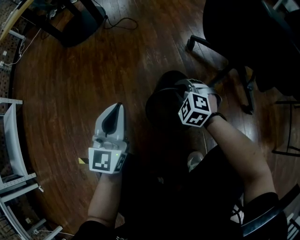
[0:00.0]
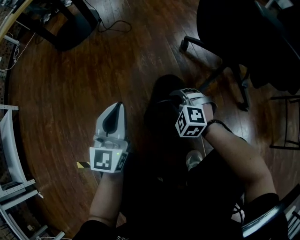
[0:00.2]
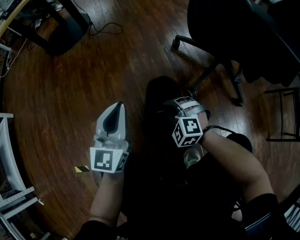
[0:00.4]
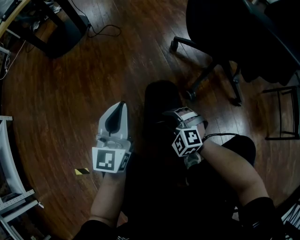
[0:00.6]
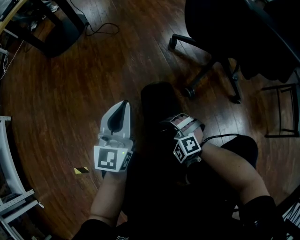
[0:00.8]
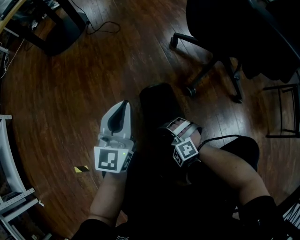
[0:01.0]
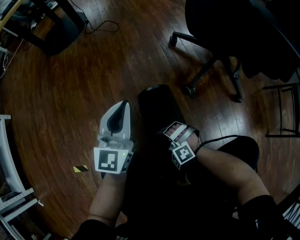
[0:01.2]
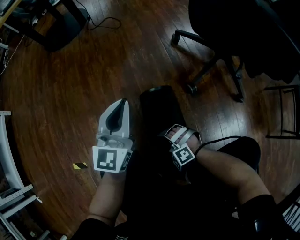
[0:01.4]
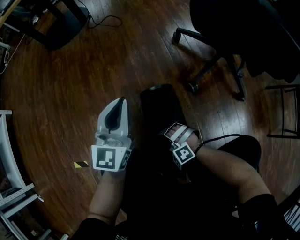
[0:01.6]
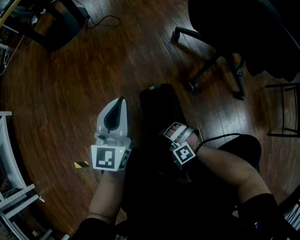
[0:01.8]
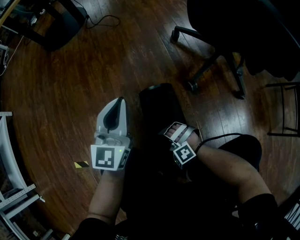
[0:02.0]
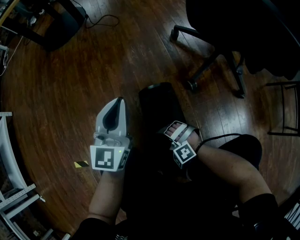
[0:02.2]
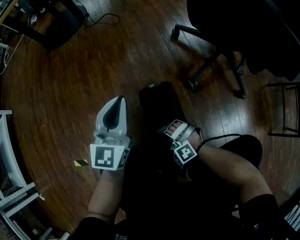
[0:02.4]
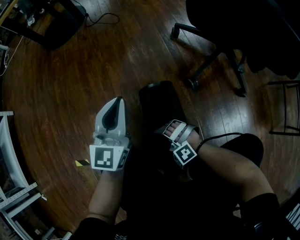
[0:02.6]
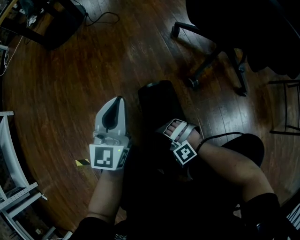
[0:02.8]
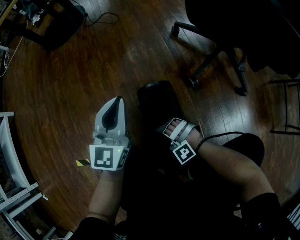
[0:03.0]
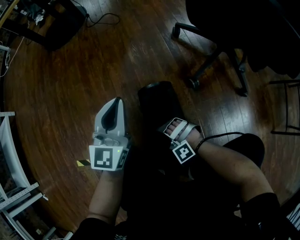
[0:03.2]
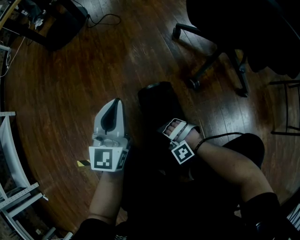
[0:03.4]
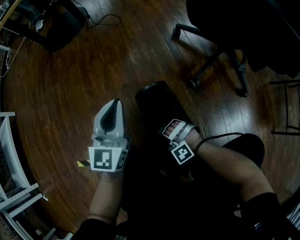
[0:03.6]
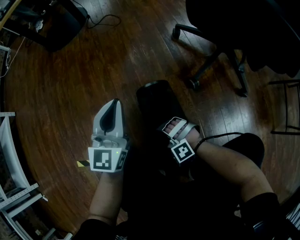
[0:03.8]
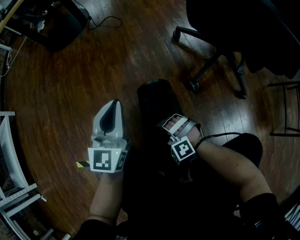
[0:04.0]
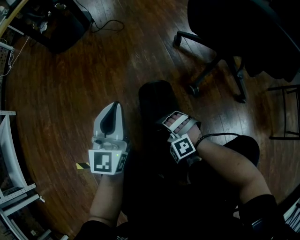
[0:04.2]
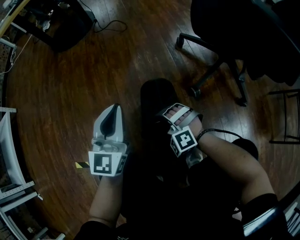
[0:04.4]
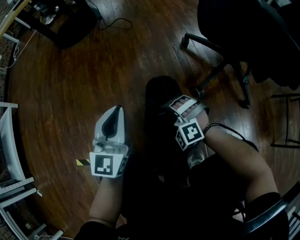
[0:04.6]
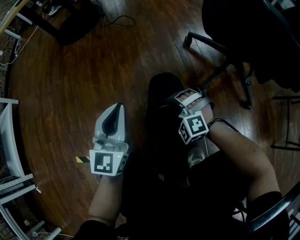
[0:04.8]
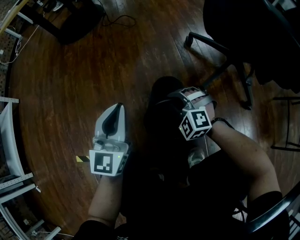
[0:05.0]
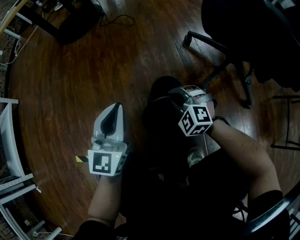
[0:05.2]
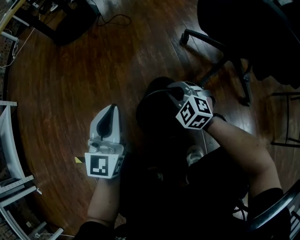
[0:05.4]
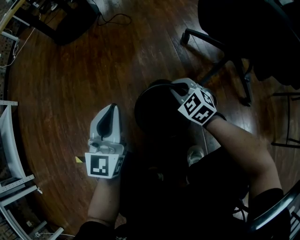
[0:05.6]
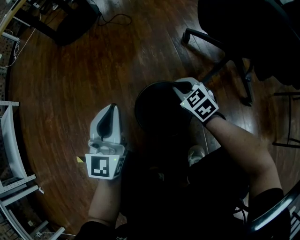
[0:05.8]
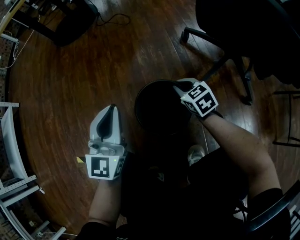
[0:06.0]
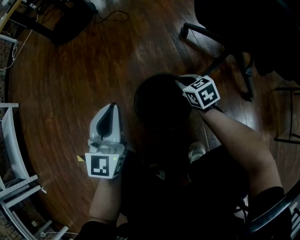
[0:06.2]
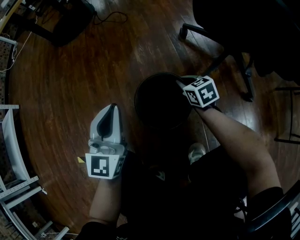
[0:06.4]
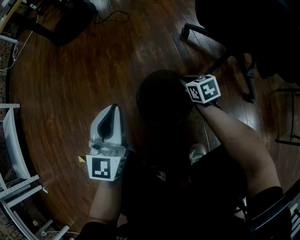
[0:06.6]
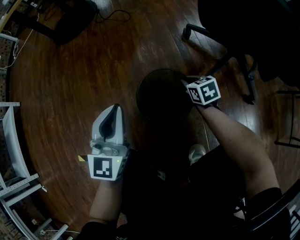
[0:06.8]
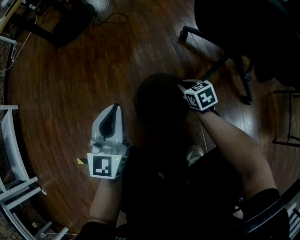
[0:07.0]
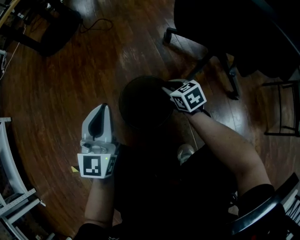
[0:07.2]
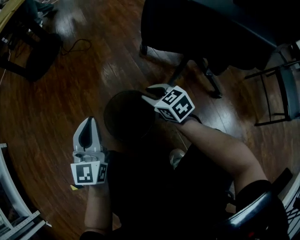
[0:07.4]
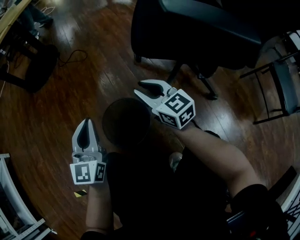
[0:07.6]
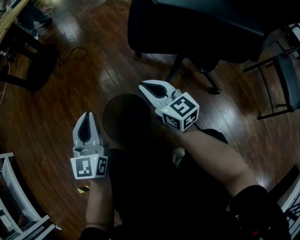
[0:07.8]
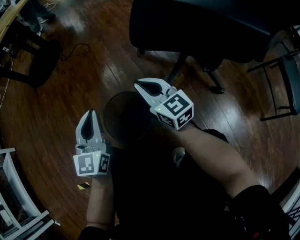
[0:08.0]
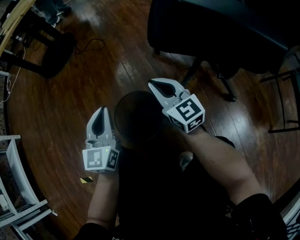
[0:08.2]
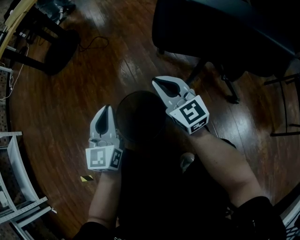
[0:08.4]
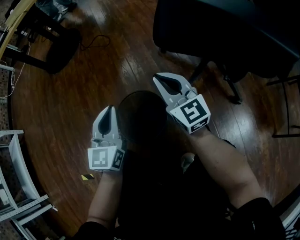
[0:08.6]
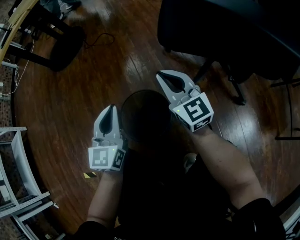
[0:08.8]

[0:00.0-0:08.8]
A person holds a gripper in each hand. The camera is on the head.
0:00.0 to 0:01.4: The right gripper shifts about 30 cm backward, downward and to the left, turns by some 30 degrees, and opens up.
0:01.4 to 0:03.0: The right gripper opens.
0:03.0 to 0:04.4: The right gripper is displaced forward and upward by about 10 cm, and closes.
0:04.4 to 0:05.8: The right gripper travels forward and to the right by about 15 cm, and twists about 60 degrees clockwise, seen from behind.
0:05.8 to 0:07.4: The left gripper moves about 5 cm. The right gripper swivels about 20 degrees, and opens.
0:07.4 to 0:08.8: The left gripper changes place by some 5 cm. Meanwhile the right gripper goes roughly 10 cm upward, tips its fingers upward by about 30 degrees, and closes its fingers.

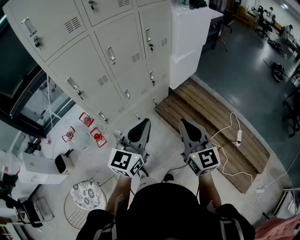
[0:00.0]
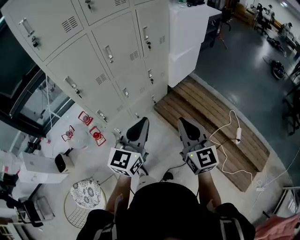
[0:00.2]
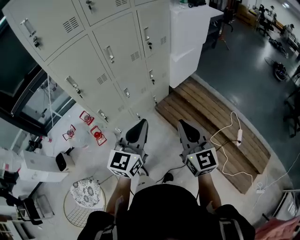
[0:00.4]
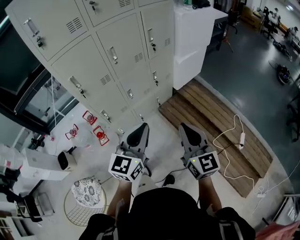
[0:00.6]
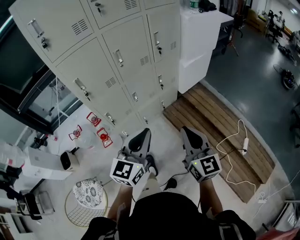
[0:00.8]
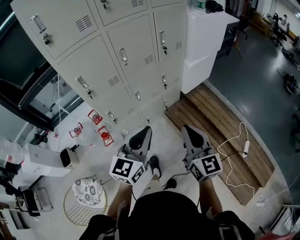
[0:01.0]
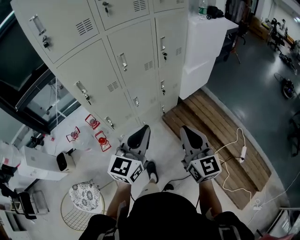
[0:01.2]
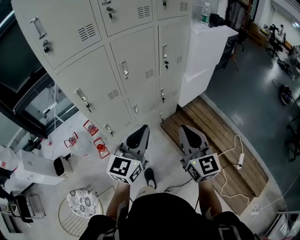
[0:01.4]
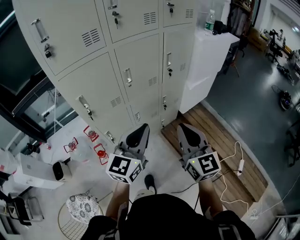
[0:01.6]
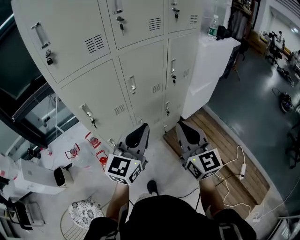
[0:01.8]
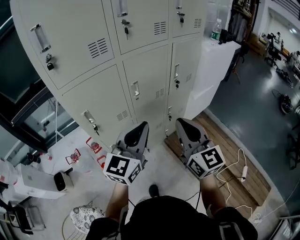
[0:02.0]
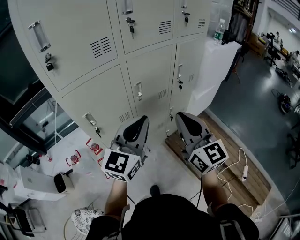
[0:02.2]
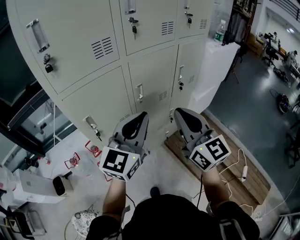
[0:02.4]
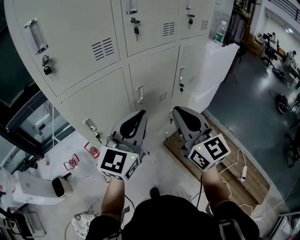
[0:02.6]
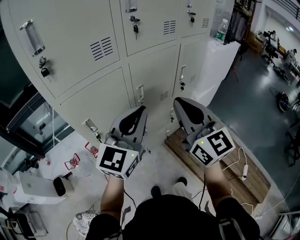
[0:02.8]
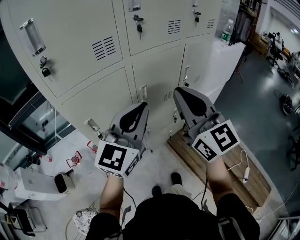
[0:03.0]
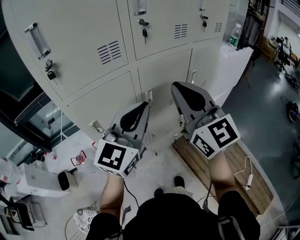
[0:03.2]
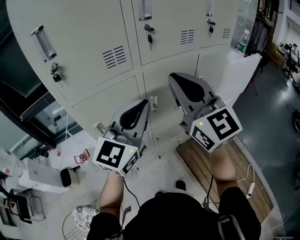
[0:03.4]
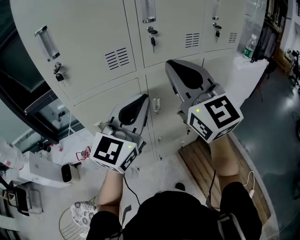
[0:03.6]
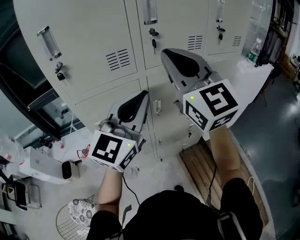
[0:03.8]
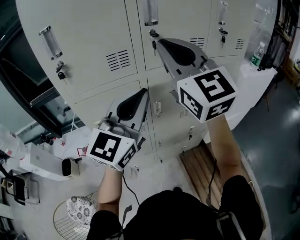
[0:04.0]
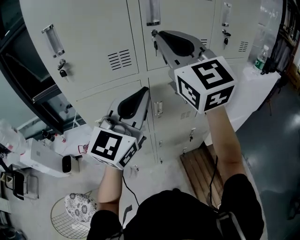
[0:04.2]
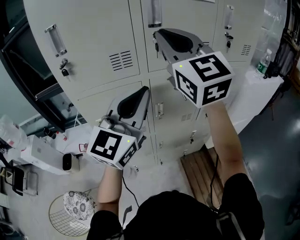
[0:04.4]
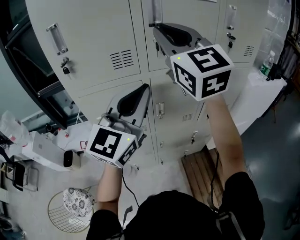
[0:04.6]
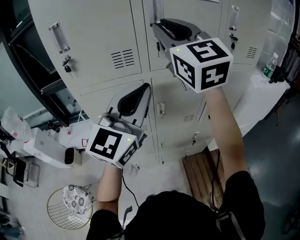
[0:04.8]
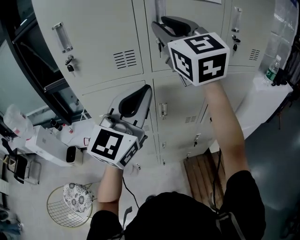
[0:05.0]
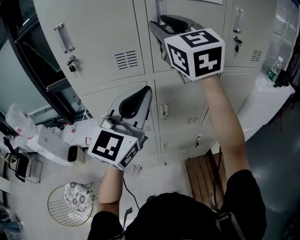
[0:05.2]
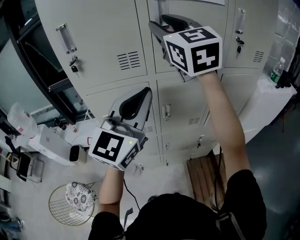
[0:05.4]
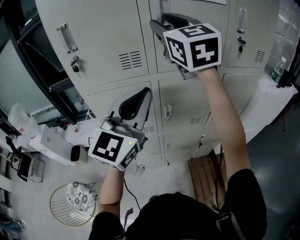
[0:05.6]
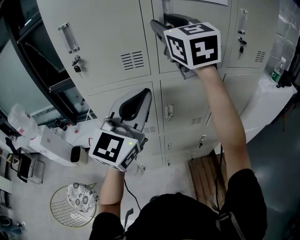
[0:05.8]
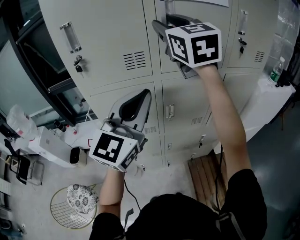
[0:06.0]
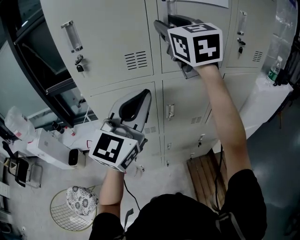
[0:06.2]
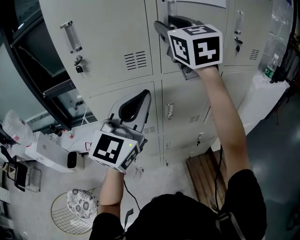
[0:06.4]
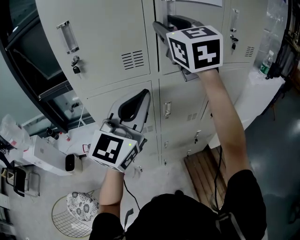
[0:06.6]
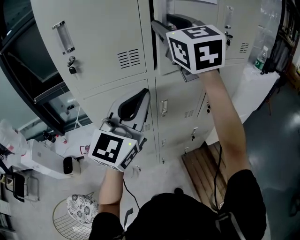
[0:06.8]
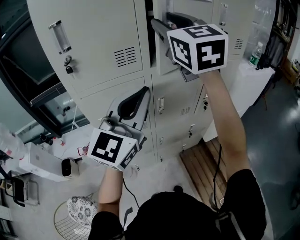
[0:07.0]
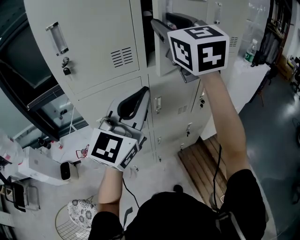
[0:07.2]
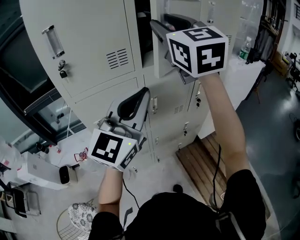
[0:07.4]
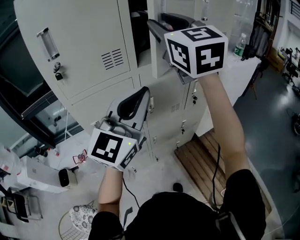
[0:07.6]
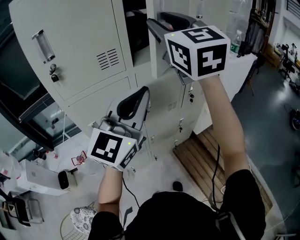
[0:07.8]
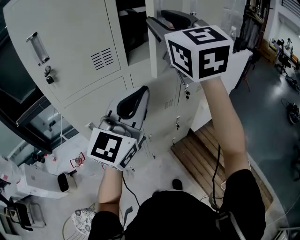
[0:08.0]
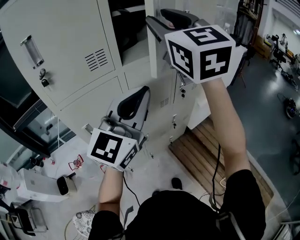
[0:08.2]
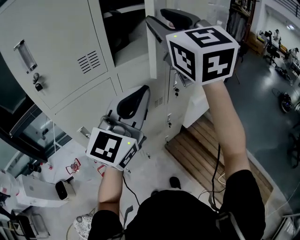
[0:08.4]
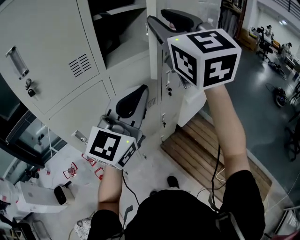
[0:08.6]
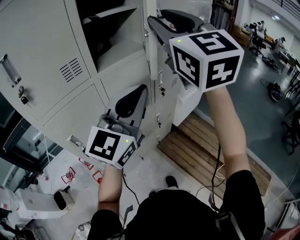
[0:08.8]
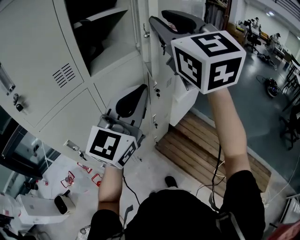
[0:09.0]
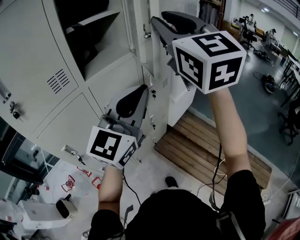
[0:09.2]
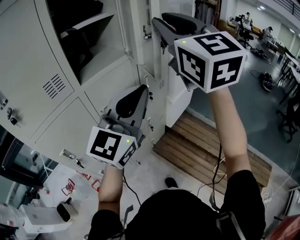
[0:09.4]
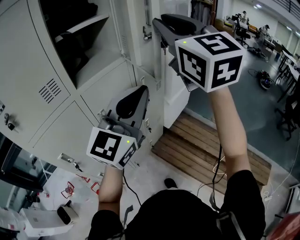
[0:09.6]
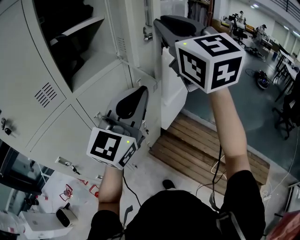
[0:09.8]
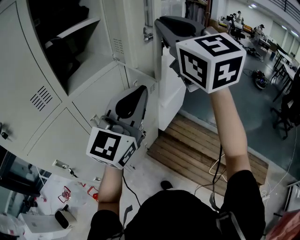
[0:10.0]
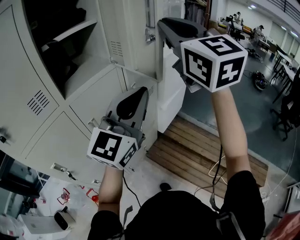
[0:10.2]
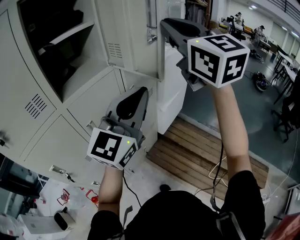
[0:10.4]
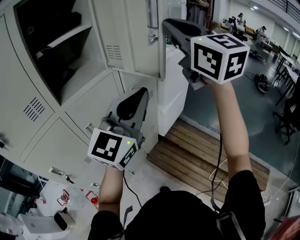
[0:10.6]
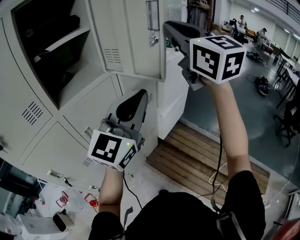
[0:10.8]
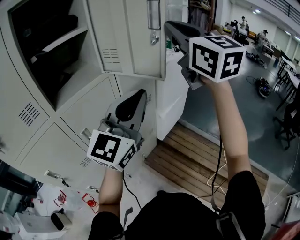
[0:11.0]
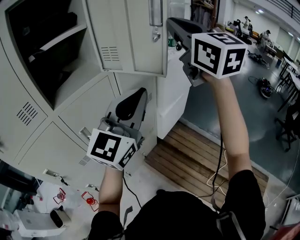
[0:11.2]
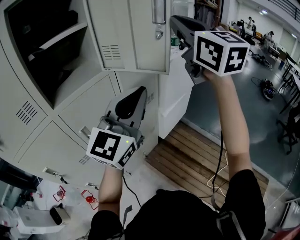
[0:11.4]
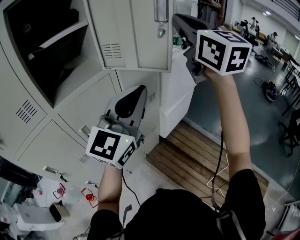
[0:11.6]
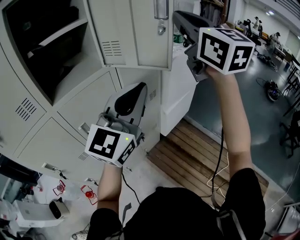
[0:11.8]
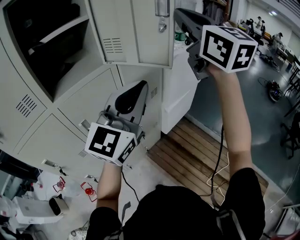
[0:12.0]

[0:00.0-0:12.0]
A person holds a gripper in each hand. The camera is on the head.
0:00.0 to 0:01.6: The left gripper is displaced forward and to the left by about 15 cm, while the right gripper shifts approximately 15 cm forward, to the left and upward.
0:01.6 to 0:03.0: Both grippers travel together forward, upward and to the left, roughly 25 cm.
0:03.0 to 0:04.4: The right gripper travels upward and forward by approximately 20 cm; the left gripper is displaced upward by approximately 10 cm.
0:04.4 to 0:06.0: The right gripper travels forward by about 5 cm, and opens up.
0:06.0 to 0:07.6: The right gripper shifts roughly 10 cm backward and to the right.
0:07.6 to 0:09.0: Both grippers travel together to the right, about 15 cm.
0:09.0 to 0:10.4: Both grippers travel together to the right and forward, about 10 cm. The right gripper closes.
0:10.4 to 0:12.0: The left gripper travels forward by approximately 5 cm; the right gripper moves forward and to the right, approximately 10 cm.

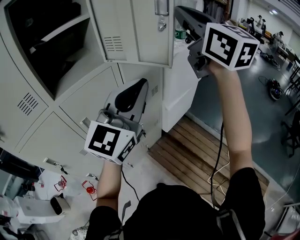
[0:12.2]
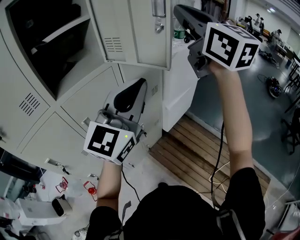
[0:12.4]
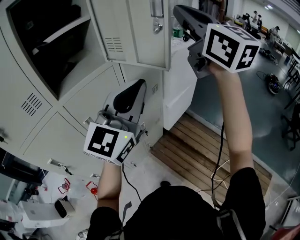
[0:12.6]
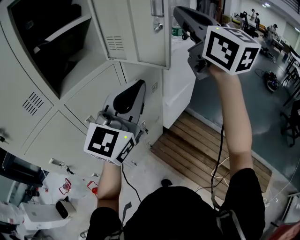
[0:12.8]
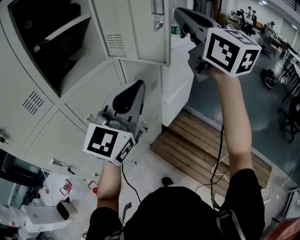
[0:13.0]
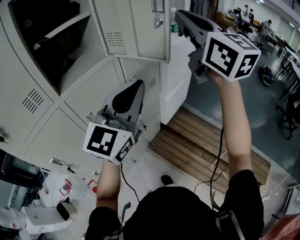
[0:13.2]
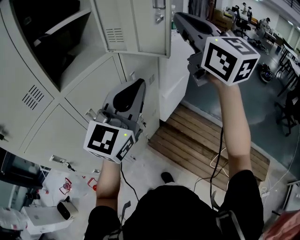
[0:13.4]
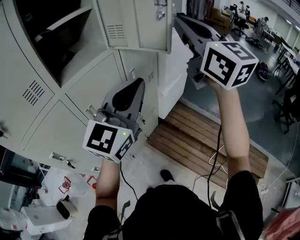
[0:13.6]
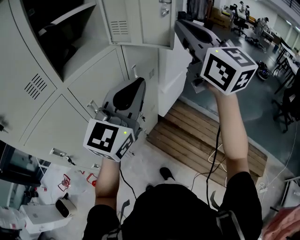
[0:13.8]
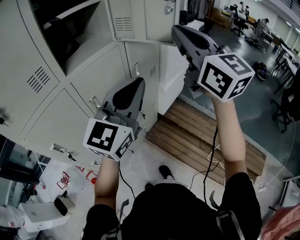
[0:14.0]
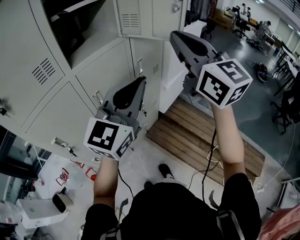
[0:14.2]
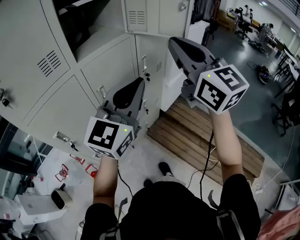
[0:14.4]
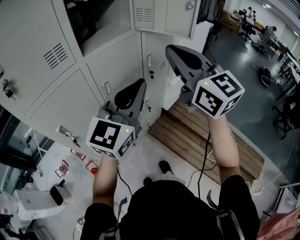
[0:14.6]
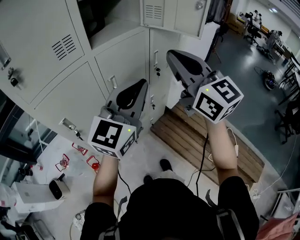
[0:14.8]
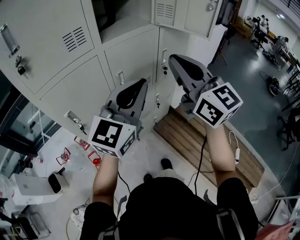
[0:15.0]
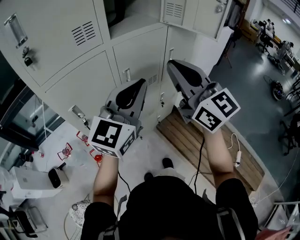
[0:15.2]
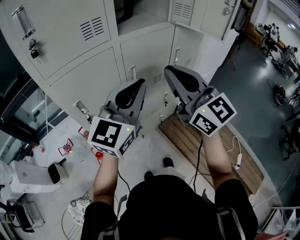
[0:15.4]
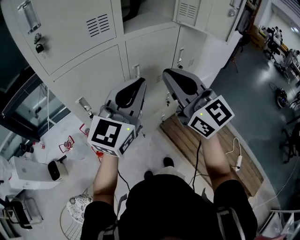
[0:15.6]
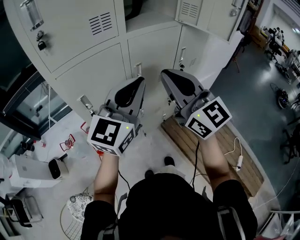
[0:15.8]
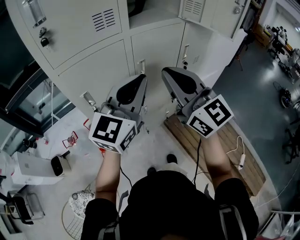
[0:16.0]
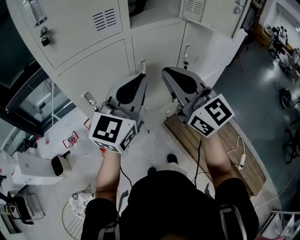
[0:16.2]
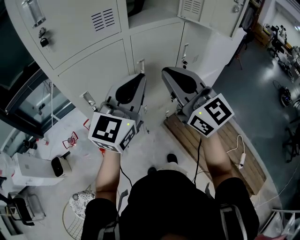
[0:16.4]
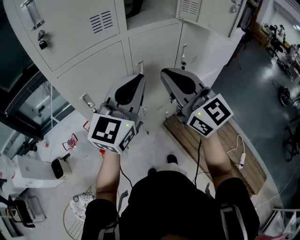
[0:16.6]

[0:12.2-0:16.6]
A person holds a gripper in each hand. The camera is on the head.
0:12.2 to 0:13.6: Both grippers travel together backward, approximately 10 cm.
0:13.6 to 0:15.2: The right gripper moves to the left, downward and backward, approximately 25 cm, and rotates approximately 20 degrees; the left gripper heads to the left and backward, covering approximately 20 cm.
0:15.2 to 0:16.6: Both grippers travel together to the left, about 5 cm.
